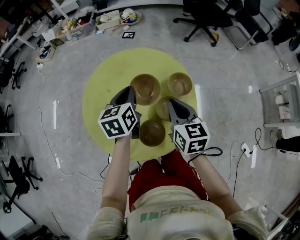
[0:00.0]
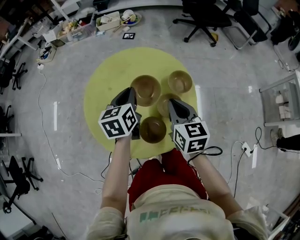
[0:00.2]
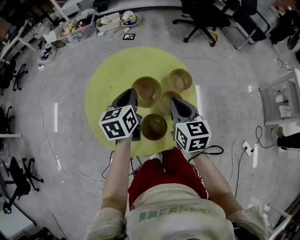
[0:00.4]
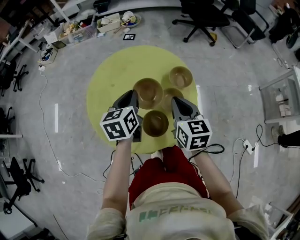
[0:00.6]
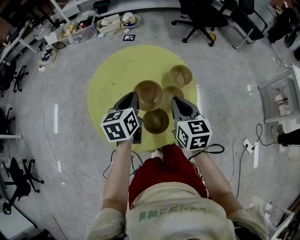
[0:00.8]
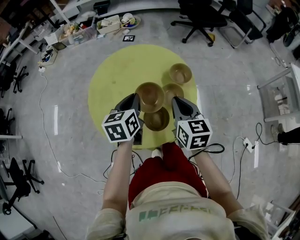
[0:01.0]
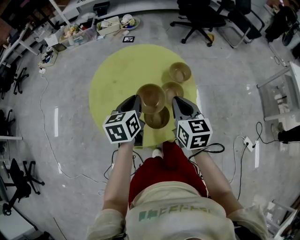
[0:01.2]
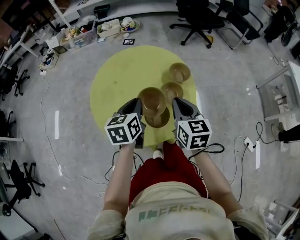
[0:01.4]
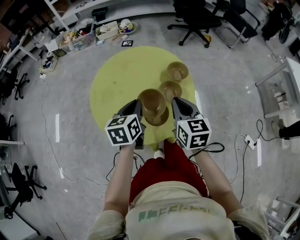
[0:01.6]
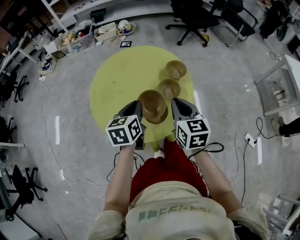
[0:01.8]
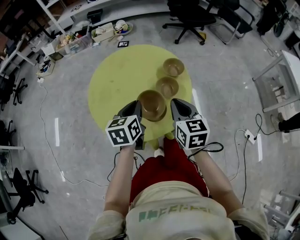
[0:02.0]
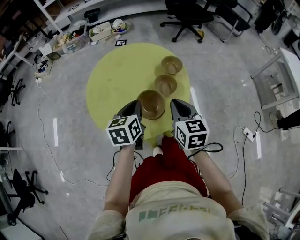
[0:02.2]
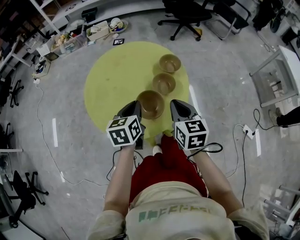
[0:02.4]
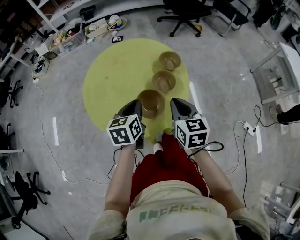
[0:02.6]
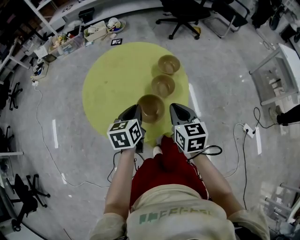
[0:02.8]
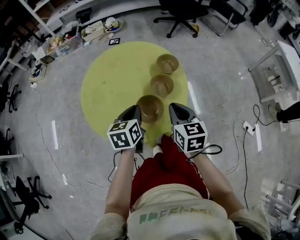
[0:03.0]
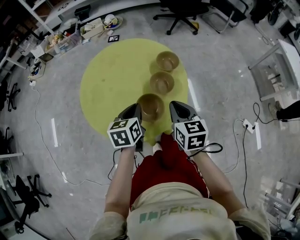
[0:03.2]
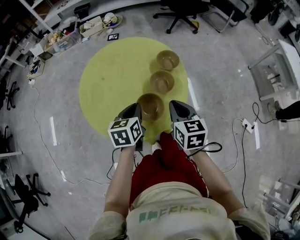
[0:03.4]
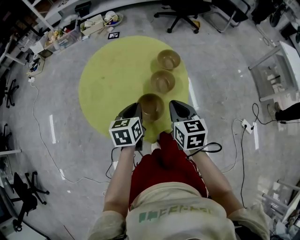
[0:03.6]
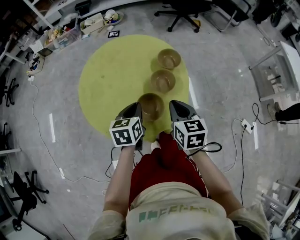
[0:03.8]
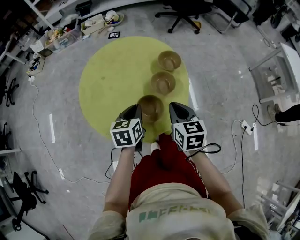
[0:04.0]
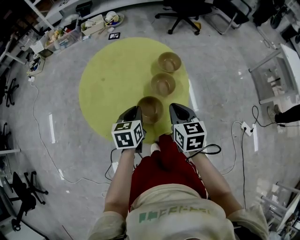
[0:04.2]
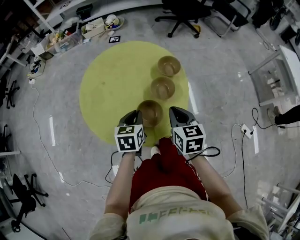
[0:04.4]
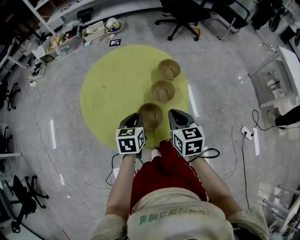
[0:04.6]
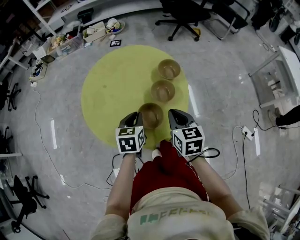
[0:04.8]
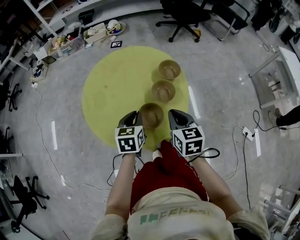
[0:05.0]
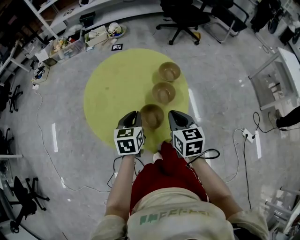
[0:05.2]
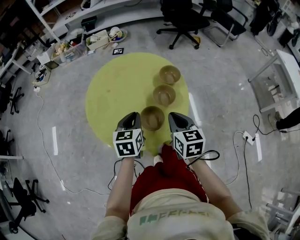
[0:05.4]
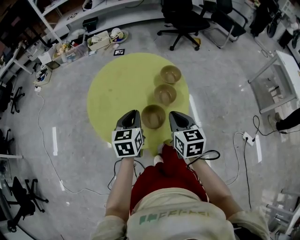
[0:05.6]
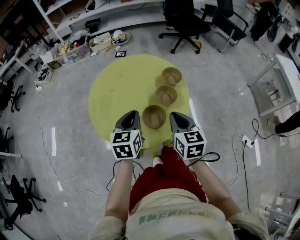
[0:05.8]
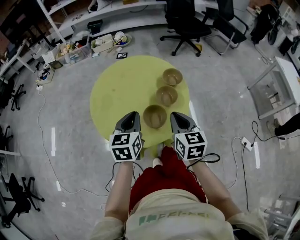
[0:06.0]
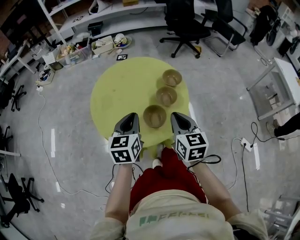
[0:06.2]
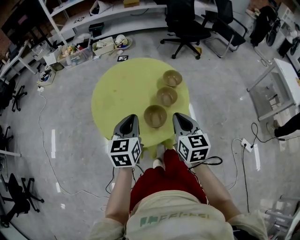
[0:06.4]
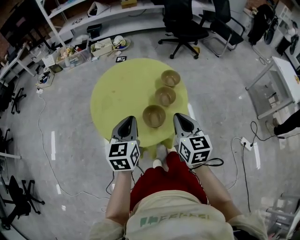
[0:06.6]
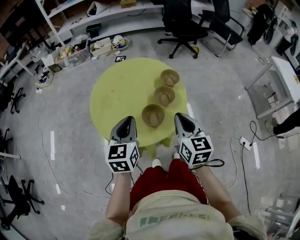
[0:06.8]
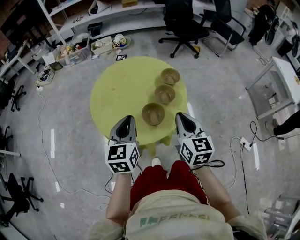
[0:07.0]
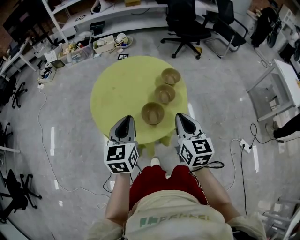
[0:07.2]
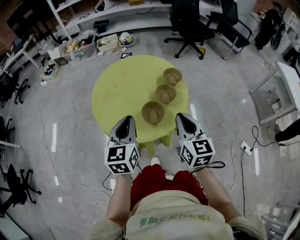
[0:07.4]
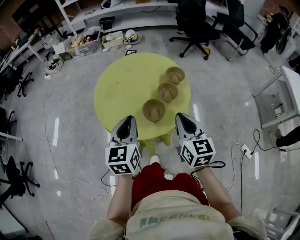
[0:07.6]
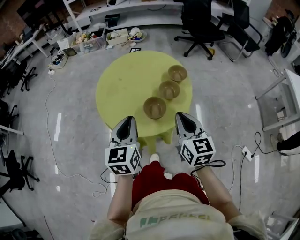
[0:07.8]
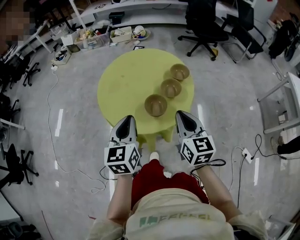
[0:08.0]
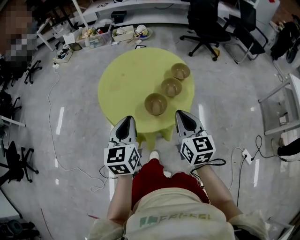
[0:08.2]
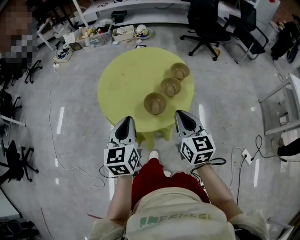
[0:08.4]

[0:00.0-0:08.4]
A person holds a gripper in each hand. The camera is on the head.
0:00.0 to 0:01.4: Both grippers travel together backward, roughly 15 cm.
0:01.4 to 0:02.8: The right gripper is displaced backward by approximately 5 cm. Meanwhile the left gripper changes place by about 5 cm.
0:02.8 to 0:04.2: The grippers move only a little.
0:04.2 to 0:05.6: The right gripper ends up roughly 5 cm from where it was. Meanwhile the left gripper moves upward, approximately 10 cm.
0:05.6 to 0:07.0: The two grippers go approximately 10 cm upward and backward.
0:07.0 to 0:08.4: The left gripper moves backward, roughly 5 cm.

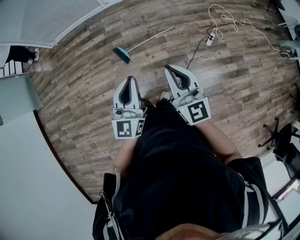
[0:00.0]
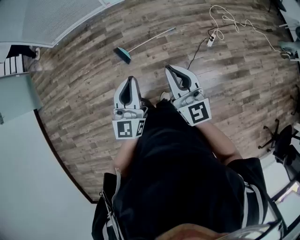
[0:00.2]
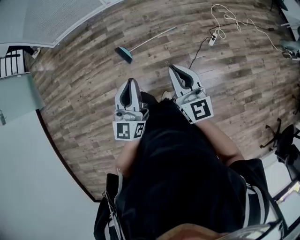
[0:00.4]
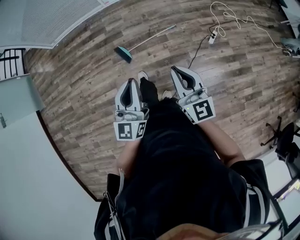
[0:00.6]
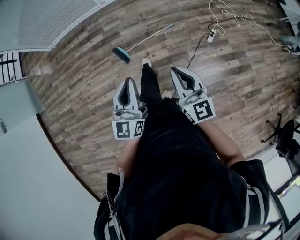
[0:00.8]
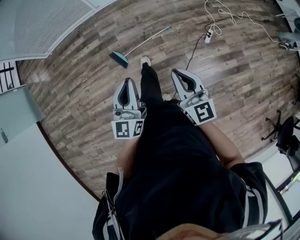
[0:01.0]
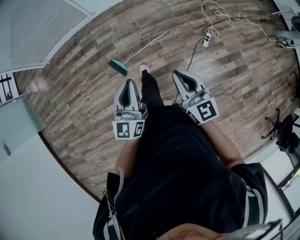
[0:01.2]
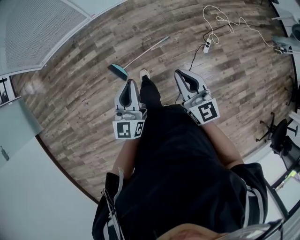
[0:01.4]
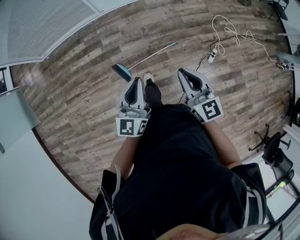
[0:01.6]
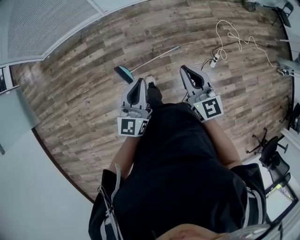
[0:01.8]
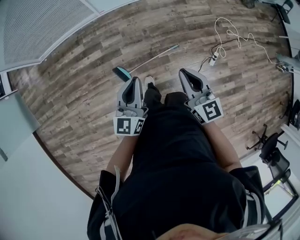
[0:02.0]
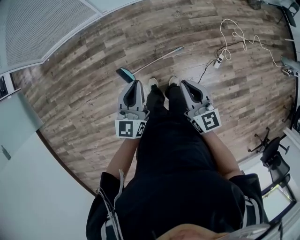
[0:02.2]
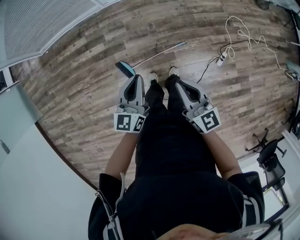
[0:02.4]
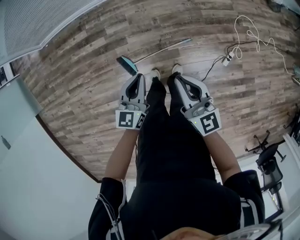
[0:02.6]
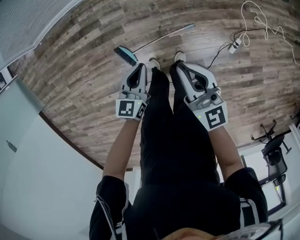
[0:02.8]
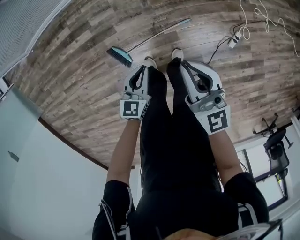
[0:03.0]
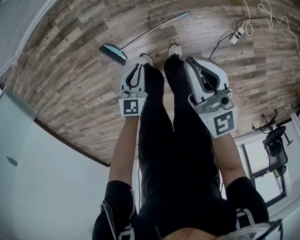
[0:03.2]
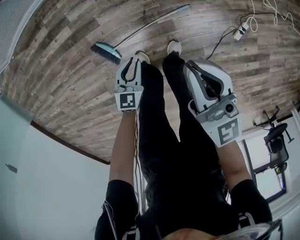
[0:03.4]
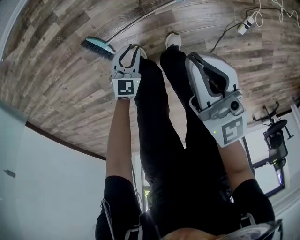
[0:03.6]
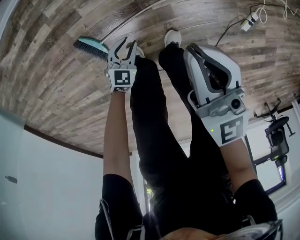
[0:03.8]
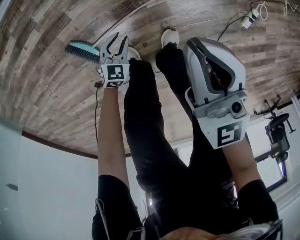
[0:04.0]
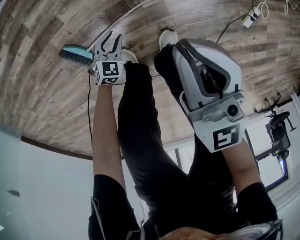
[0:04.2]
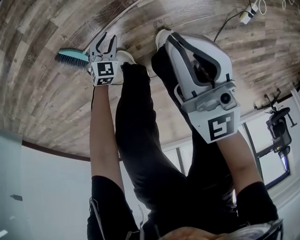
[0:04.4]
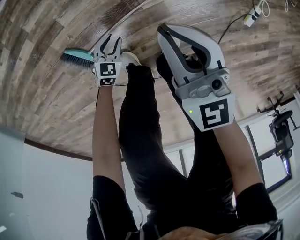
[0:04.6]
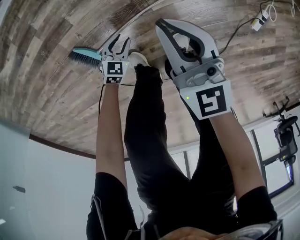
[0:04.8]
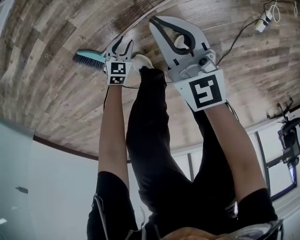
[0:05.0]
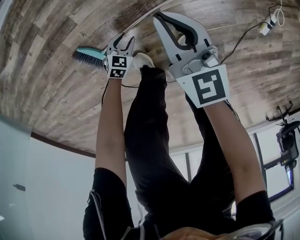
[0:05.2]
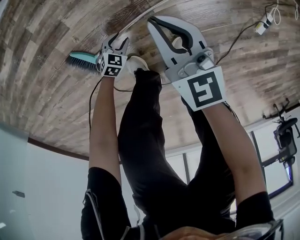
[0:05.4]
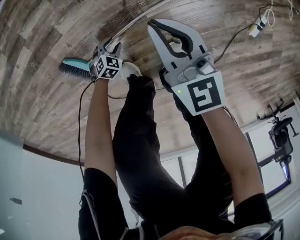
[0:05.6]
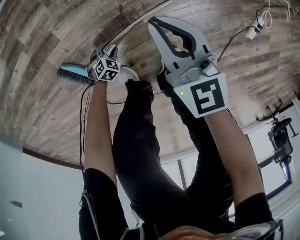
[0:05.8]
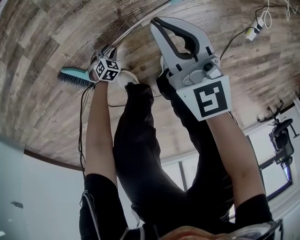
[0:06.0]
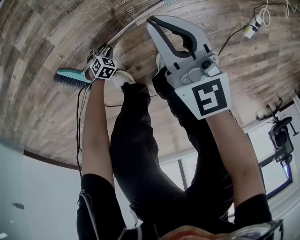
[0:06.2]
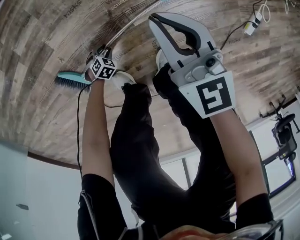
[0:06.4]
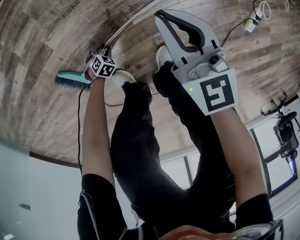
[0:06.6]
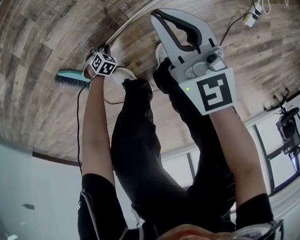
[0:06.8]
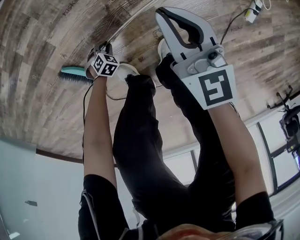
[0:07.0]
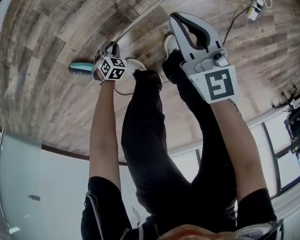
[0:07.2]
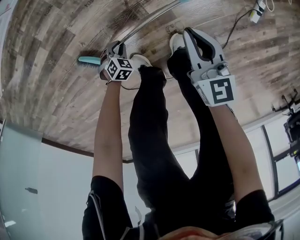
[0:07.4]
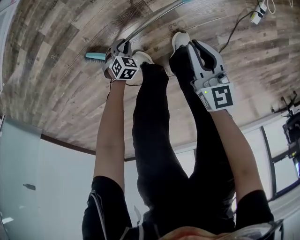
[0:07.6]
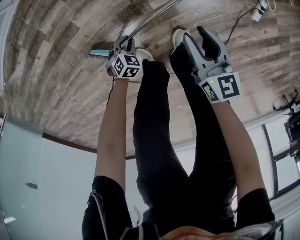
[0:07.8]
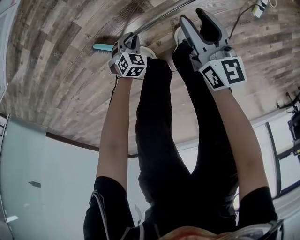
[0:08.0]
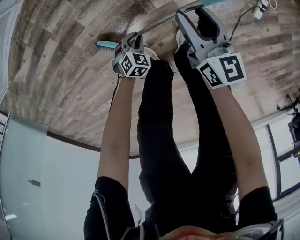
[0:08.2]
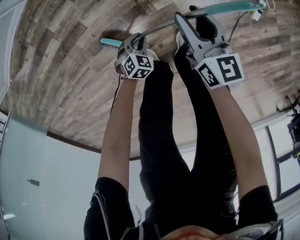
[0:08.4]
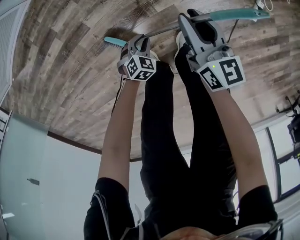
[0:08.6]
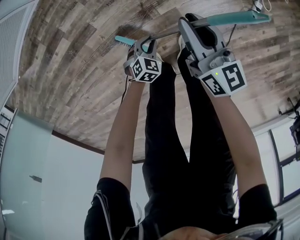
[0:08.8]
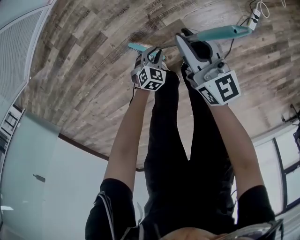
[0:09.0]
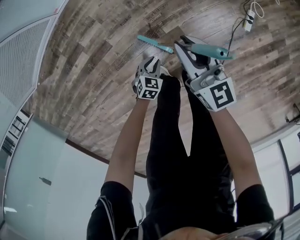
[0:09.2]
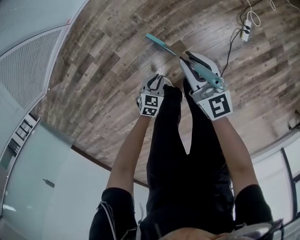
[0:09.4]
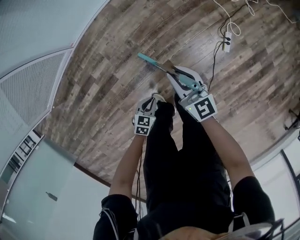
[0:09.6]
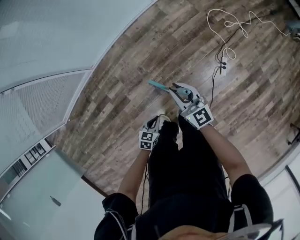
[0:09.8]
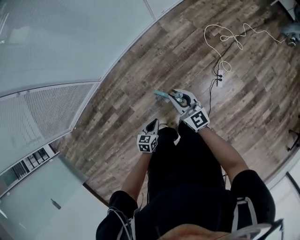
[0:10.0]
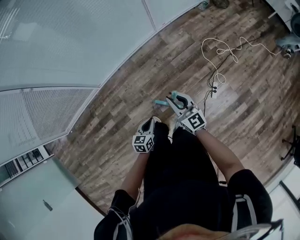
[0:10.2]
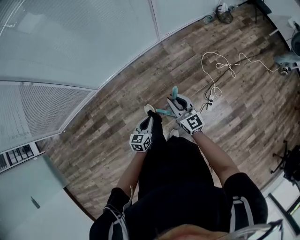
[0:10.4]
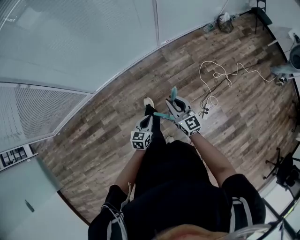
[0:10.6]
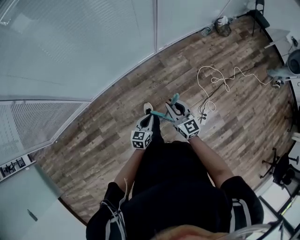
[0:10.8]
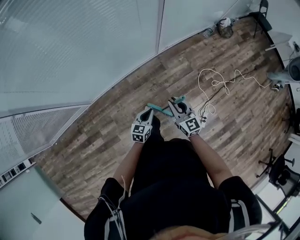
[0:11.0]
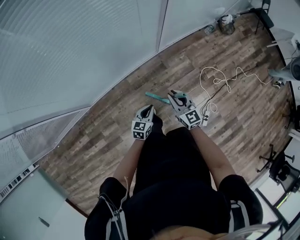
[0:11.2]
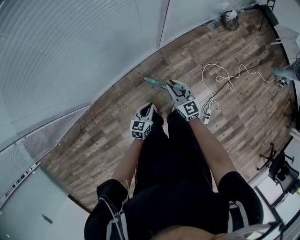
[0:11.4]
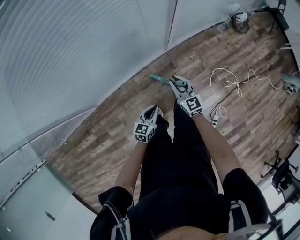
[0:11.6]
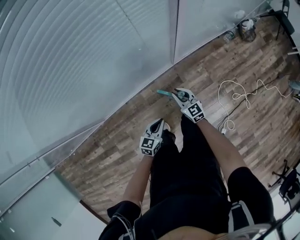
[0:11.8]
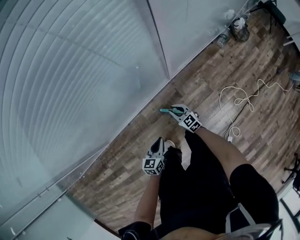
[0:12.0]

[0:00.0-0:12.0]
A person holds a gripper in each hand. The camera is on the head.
0:00.0 to 0:01.6: The grippers both shift forward by approximately 30 cm.
0:01.6 to 0:03.0: The right gripper travels forward and downward by about 30 cm. Meanwhile the left gripper is displaced downward and forward by approximately 40 cm, and tilts its fingers some 30 degrees downward.
0:03.0 to 0:04.4: Both grippers move downward, approximately 50 cm. The left gripper rotates about 30 degrees, and opens up.
0:04.4 to 0:06.0: The two grippers go approximately 15 cm downward. The left gripper changes its angle by roughly 30 degrees.
0:06.0 to 0:07.6: The left gripper goes roughly 15 cm upward. The right gripper shifts by some 15 cm, and rotates some 20 degrees.
0:07.6 to 0:09.0: The grippers both shift upward by approximately 20 cm. The right gripper changes its angle by roughly 20 degrees, and opens and closes again.
0:09.0 to 0:10.4: The grippers both shift upward by some 40 cm. The right gripper rotates some 20 degrees; the left gripper rotates some 40 degrees.
0:10.4 to 0:12.0: Both grippers are carried forward, roughly 50 cm. The right gripper travels downward by some 30 cm, and turns by some 30 degrees.

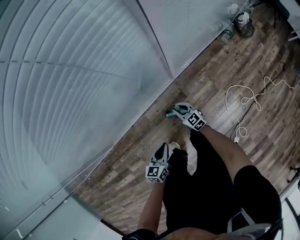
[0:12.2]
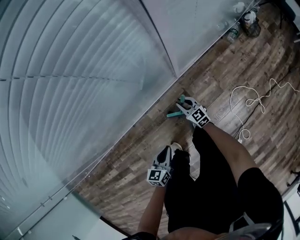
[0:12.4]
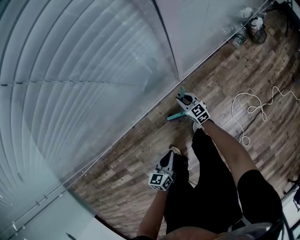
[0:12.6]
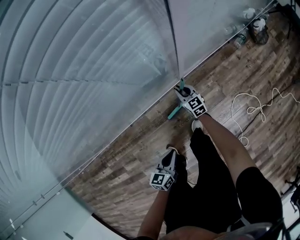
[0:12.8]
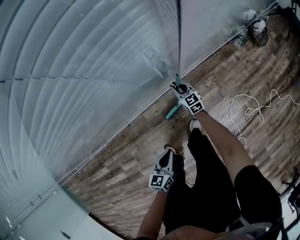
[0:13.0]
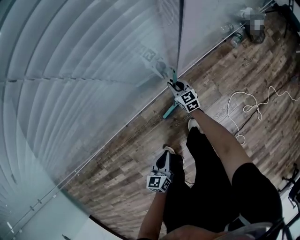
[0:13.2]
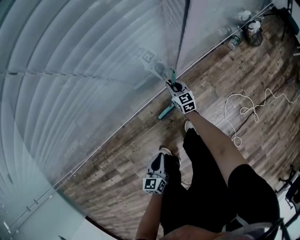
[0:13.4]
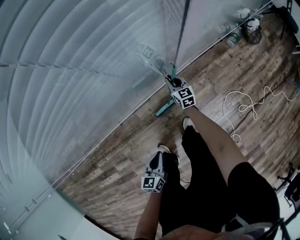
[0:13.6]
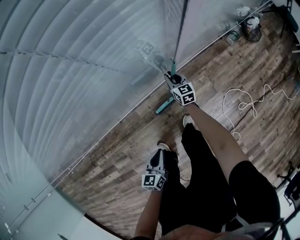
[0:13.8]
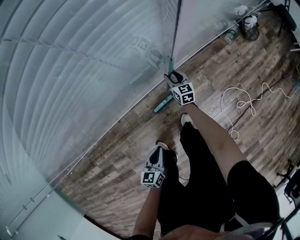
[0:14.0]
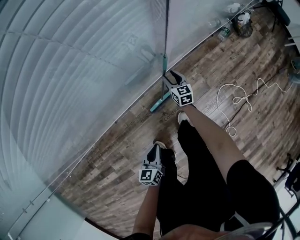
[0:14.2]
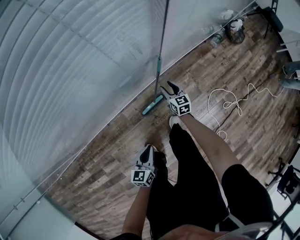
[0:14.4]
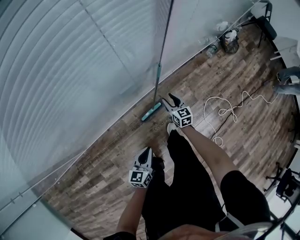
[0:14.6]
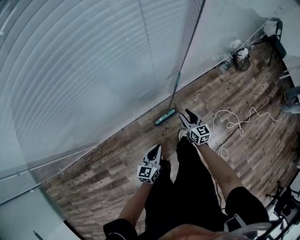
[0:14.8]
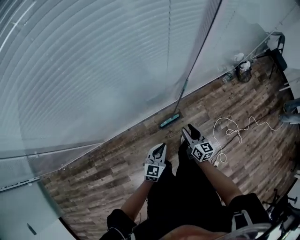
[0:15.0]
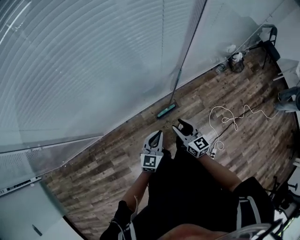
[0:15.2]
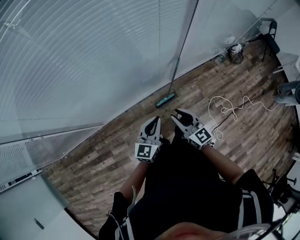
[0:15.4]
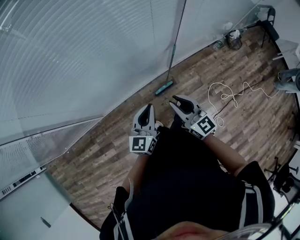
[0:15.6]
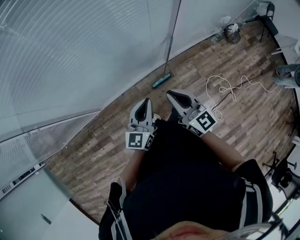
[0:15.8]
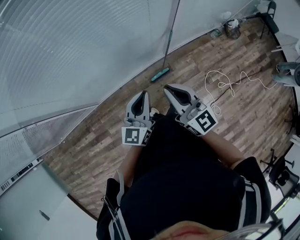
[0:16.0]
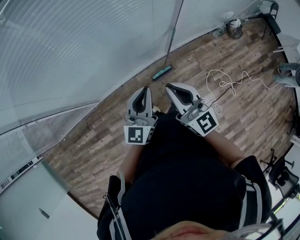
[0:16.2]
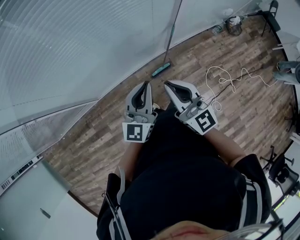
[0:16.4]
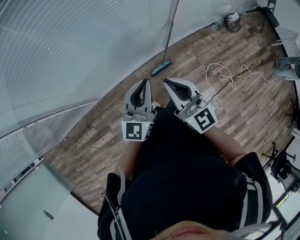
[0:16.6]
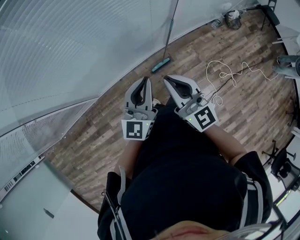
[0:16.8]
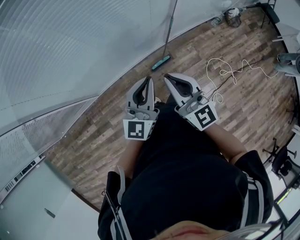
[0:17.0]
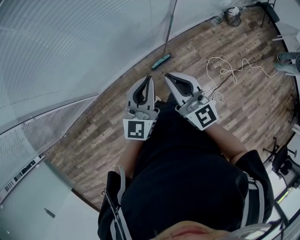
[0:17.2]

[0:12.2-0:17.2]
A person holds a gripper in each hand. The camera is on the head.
0:12.2 to 0:13.8: The left gripper goes roughly 5 cm downward. Meanwhile the right gripper travels forward by some 20 cm, and rotates roughly 20 degrees.
0:13.8 to 0:15.6: The right gripper heads upward and backward, covering some 70 cm, and rotates approximately 30 degrees. The left gripper heads upward, covering approximately 40 cm, and turns by about 30 degrees.
0:15.6 to 0:17.2: Both grippers travel together upward, approximately 10 cm.
